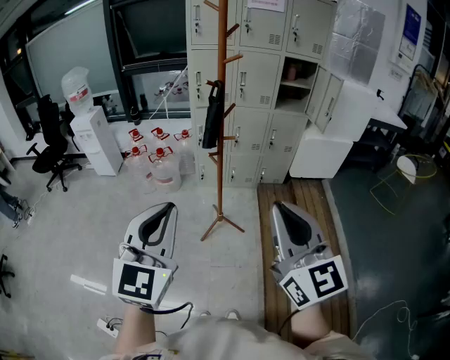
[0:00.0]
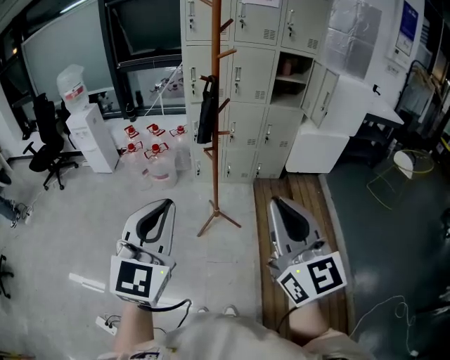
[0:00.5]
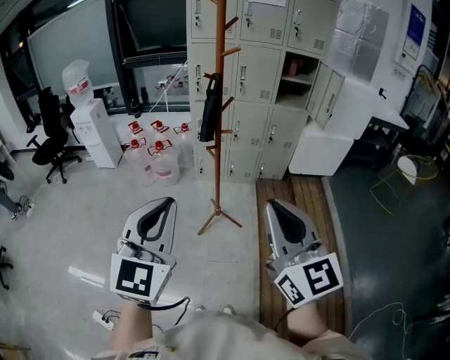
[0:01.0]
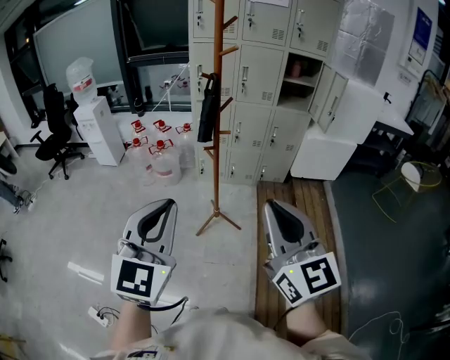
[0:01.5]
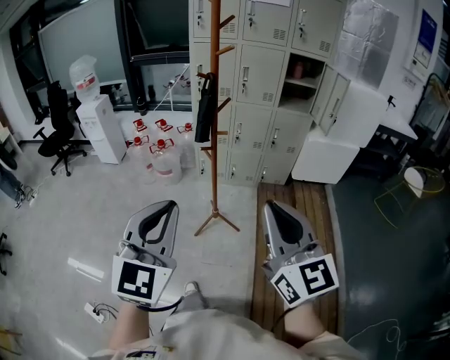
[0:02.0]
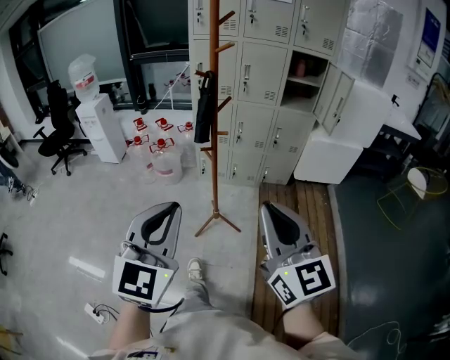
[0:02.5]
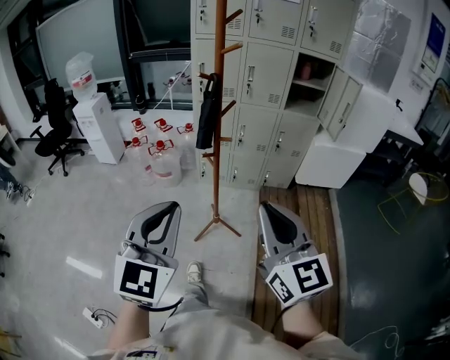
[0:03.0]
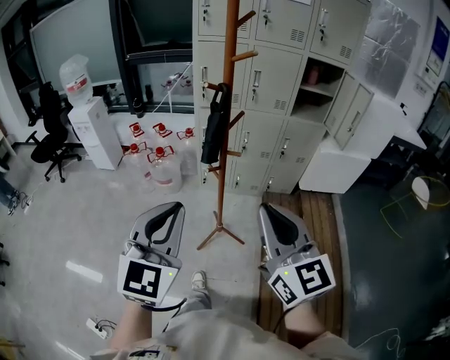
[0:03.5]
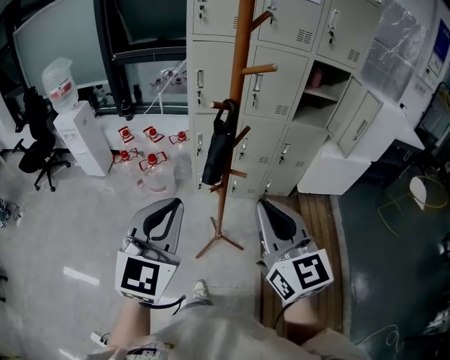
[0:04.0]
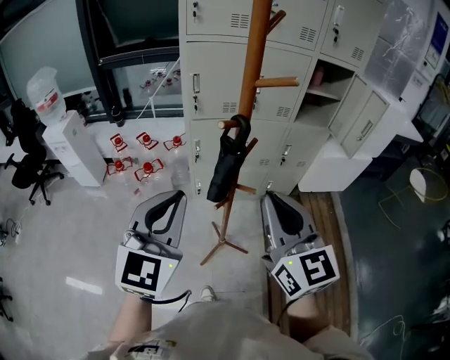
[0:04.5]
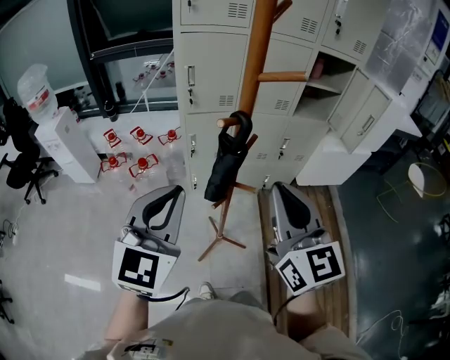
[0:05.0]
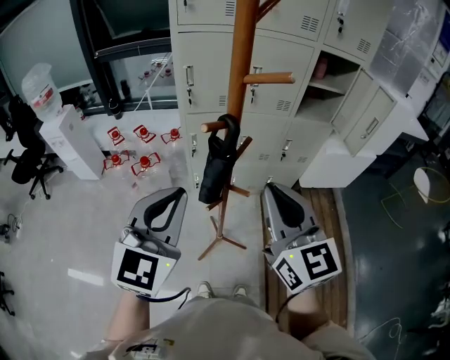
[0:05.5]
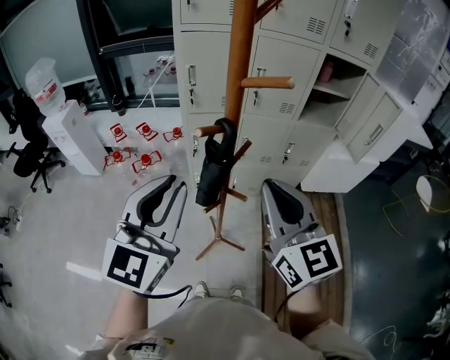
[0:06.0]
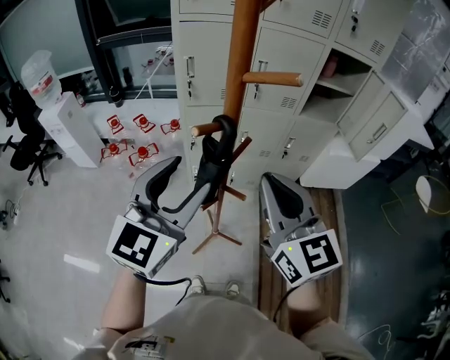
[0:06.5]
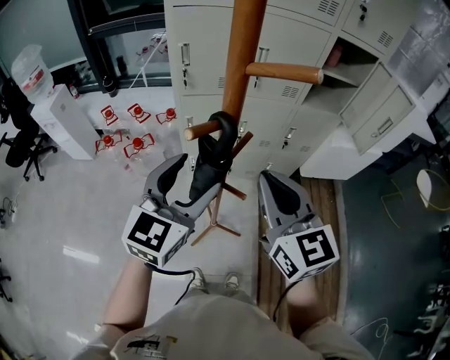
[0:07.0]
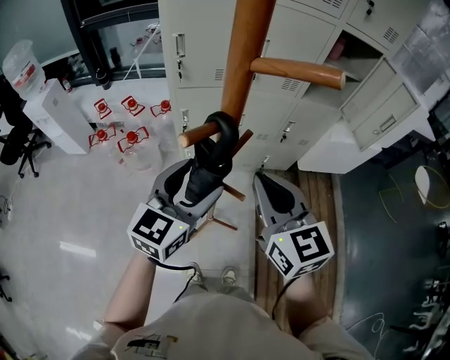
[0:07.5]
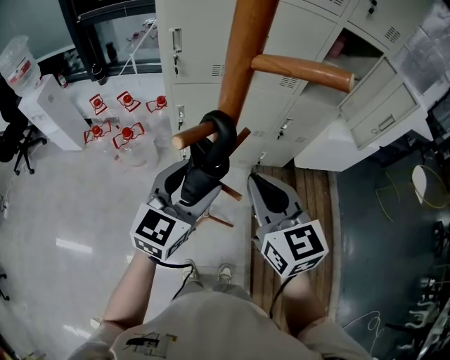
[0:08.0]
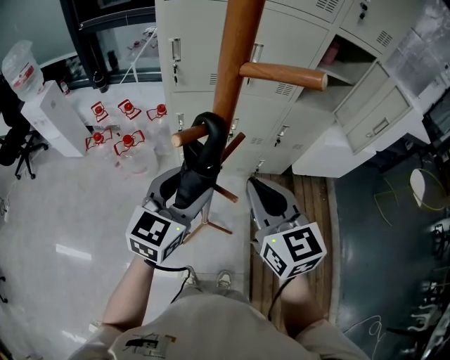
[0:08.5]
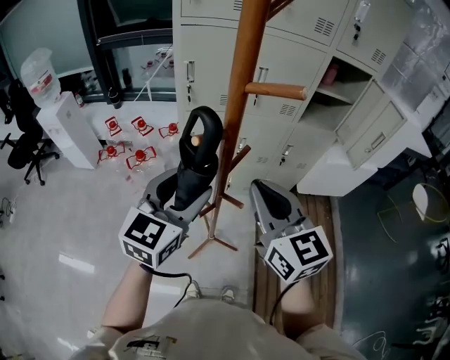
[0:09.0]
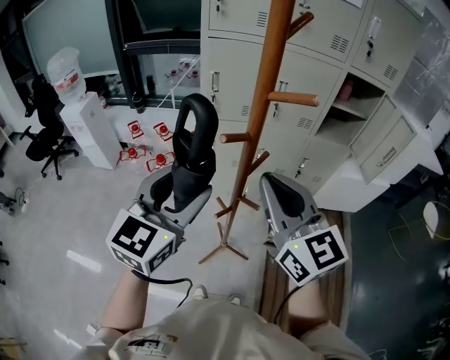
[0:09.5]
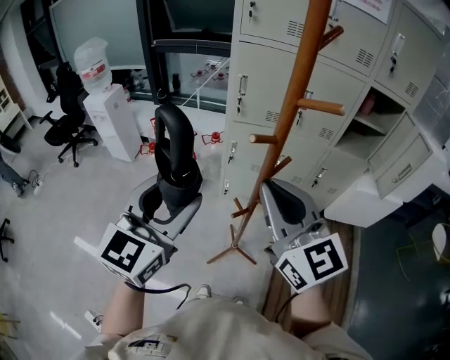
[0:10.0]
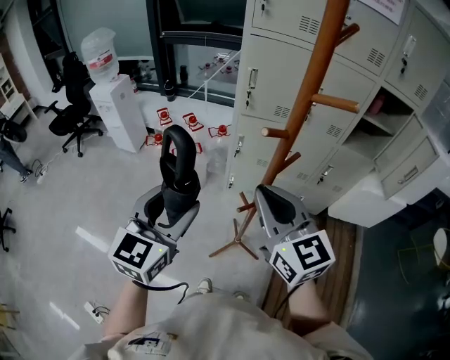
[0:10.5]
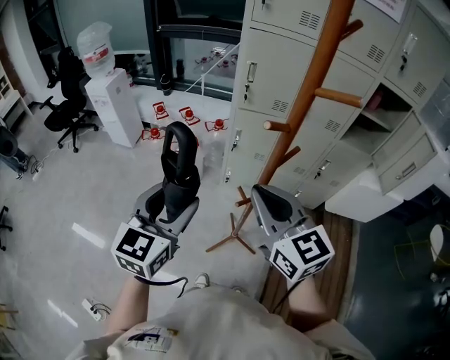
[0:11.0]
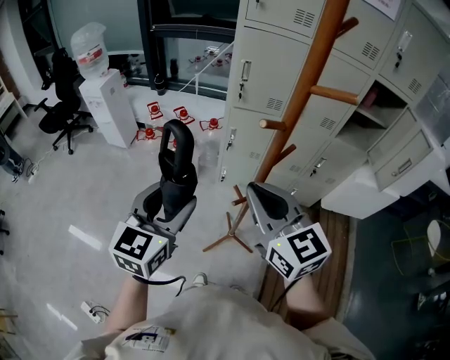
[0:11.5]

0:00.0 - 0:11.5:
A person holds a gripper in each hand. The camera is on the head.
0:00.0 - 0:02.0: The two grippers go roughly 10 cm to the right.
0:02.0 - 0:04.0: Both grippers travel together forward, some 30 cm.
0:04.0 - 0:06.0: The two grippers go approximately 15 cm forward.
0:06.0 - 0:07.5: Both grippers travel together downward and forward, about 15 cm. The left gripper swivels some 20 degrees, and opens its fingers.
0:07.5 - 0:09.5: The right gripper shifts about 15 cm upward and backward, while the left gripper shifts about 15 cm upward, backward and to the left.
0:09.5 - 0:11.5: The two grippers go approximately 10 cm to the left and downward.

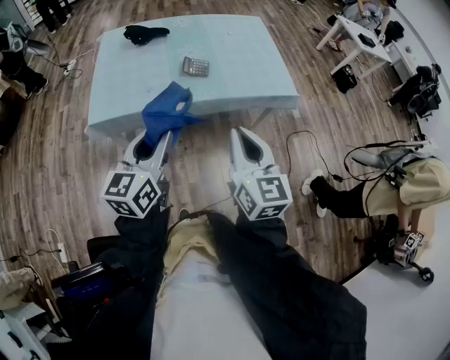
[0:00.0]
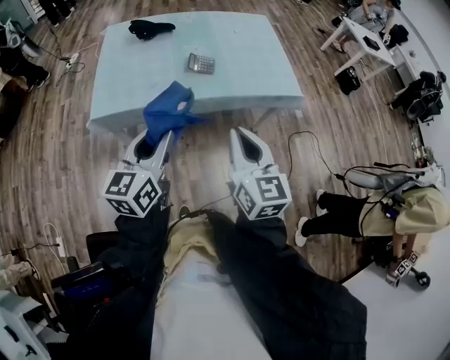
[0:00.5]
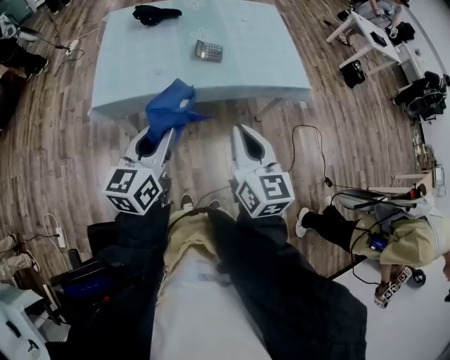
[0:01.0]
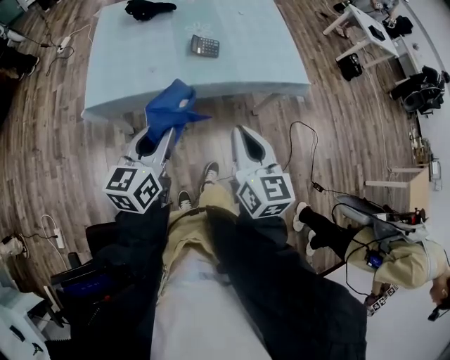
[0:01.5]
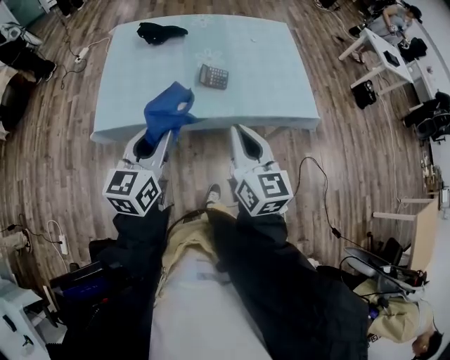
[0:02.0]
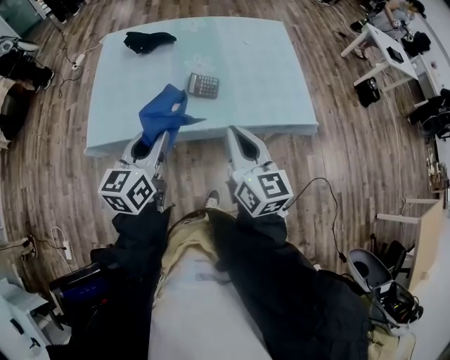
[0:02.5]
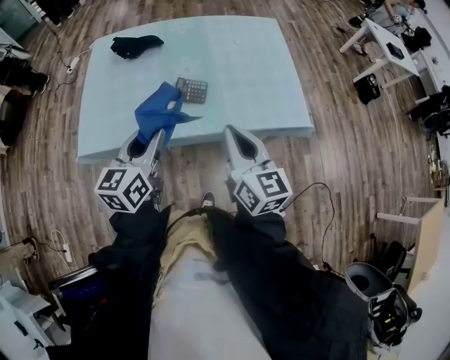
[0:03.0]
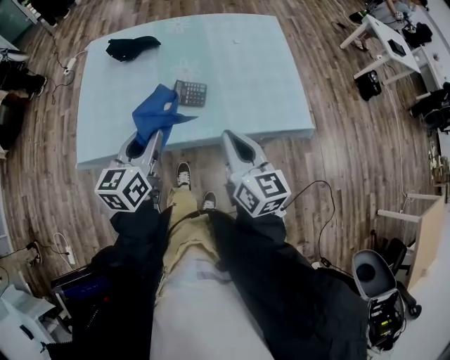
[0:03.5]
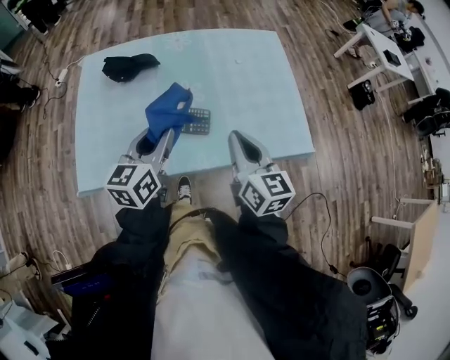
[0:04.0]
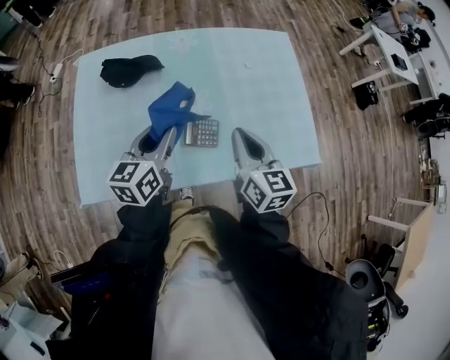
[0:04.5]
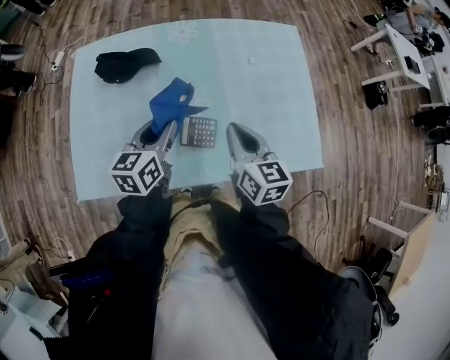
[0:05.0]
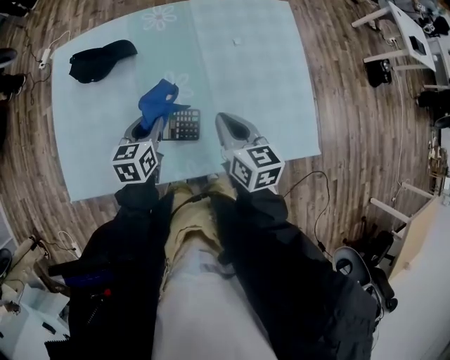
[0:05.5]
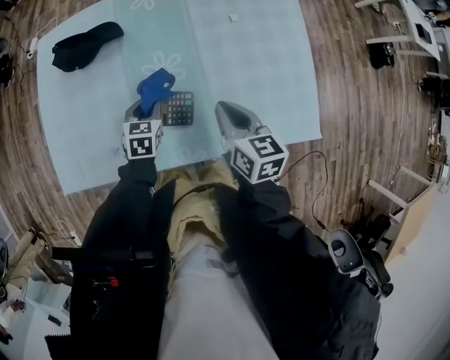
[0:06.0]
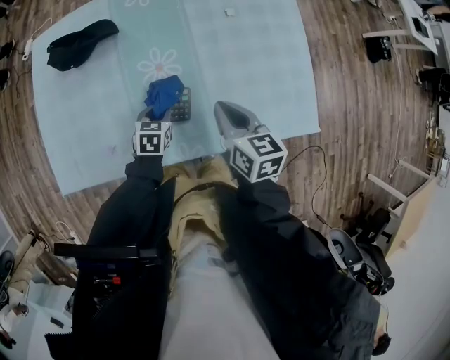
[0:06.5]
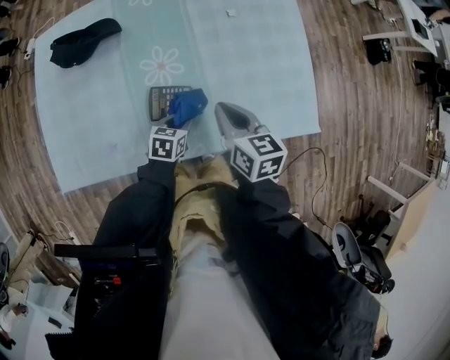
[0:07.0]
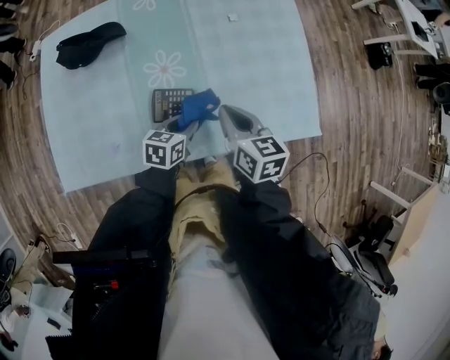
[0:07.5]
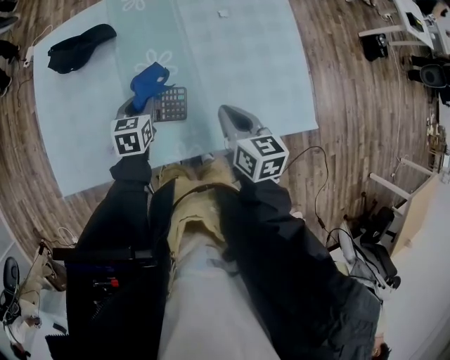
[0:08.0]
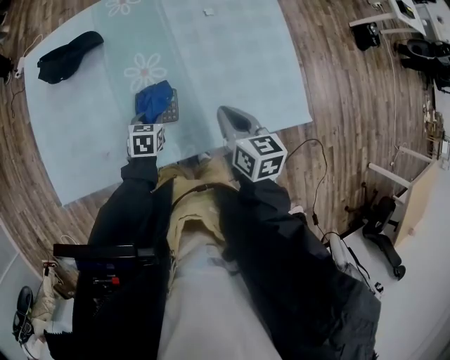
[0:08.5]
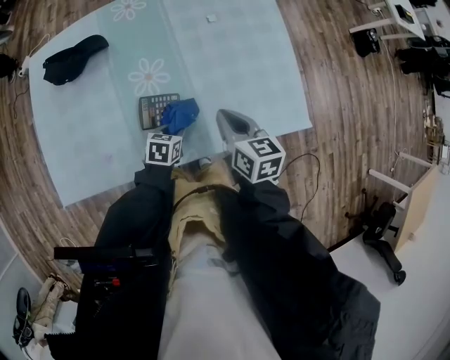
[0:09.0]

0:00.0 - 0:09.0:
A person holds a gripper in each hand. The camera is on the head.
0:00.0 - 0:02.0: The grippers both shift forward by about 15 cm.
0:02.0 - 0:04.5: Both grippers move forward, about 35 cm.
0:04.5 - 0:07.0: The right gripper heads downward and to the right, covering approximately 15 cm, and rotates roughly 20 degrees. The left gripper is displaced downward and to the right by approximately 35 cm, and points its fingers about 40 degrees further downward.
0:07.0 - 0:09.0: The left gripper moves roughly 10 cm to the left and comes back.

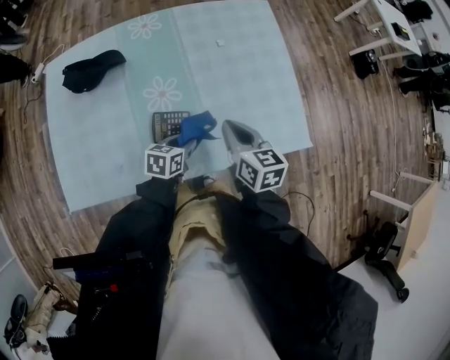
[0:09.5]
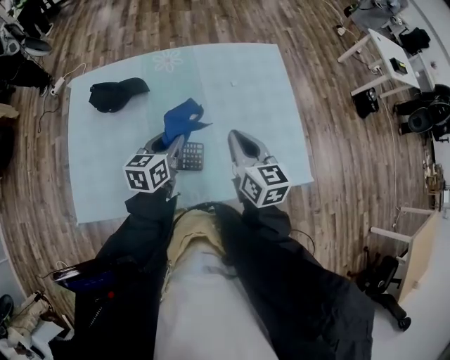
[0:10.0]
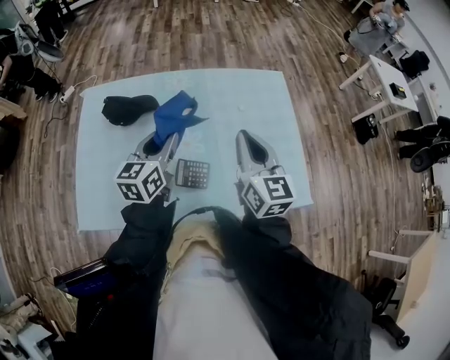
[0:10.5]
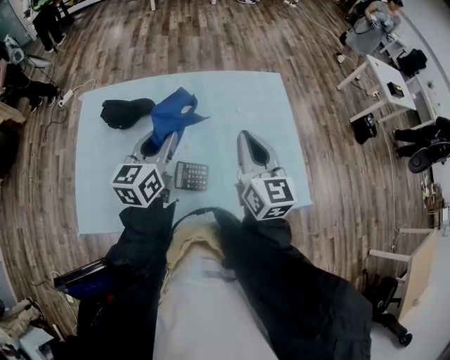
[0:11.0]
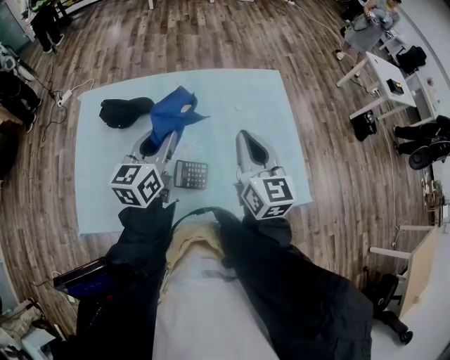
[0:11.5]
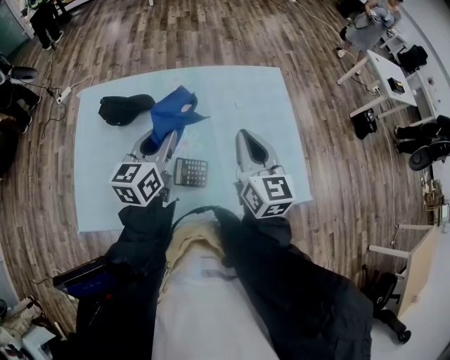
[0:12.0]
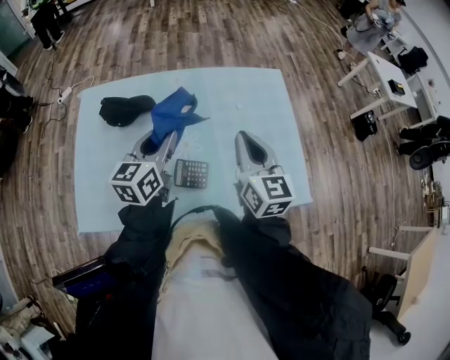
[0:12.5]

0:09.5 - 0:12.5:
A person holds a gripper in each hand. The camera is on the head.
0:09.5 - 0:11.0: The left gripper moves upward and to the left, about 30 cm, and tilts its fingers some 30 degrees upward, while the right gripper is displaced upward by about 20 cm, and changes its angle by approximately 30 degrees.
0:11.0 - 0:12.5: The grippers stay close to where they were, moving slightly.

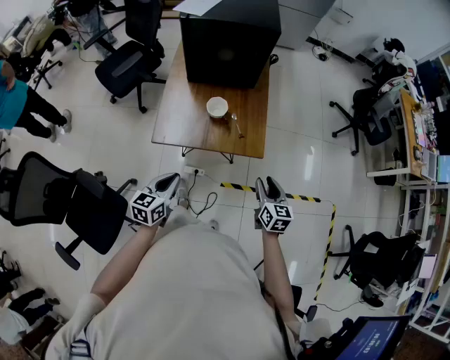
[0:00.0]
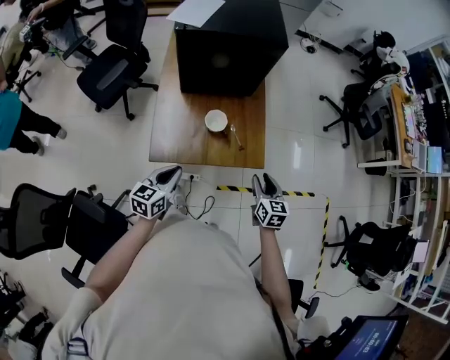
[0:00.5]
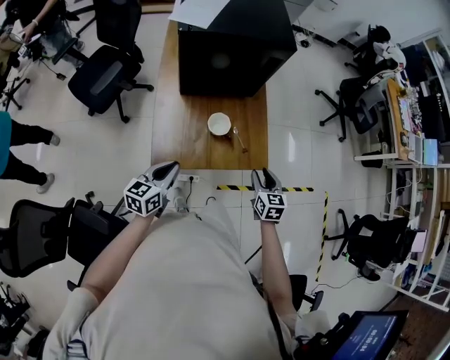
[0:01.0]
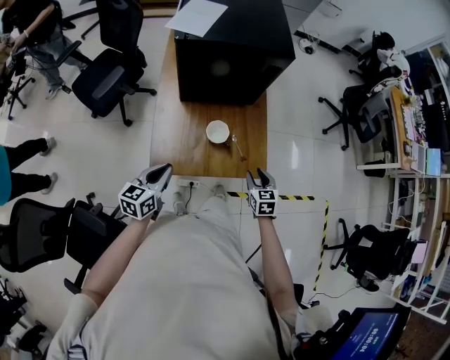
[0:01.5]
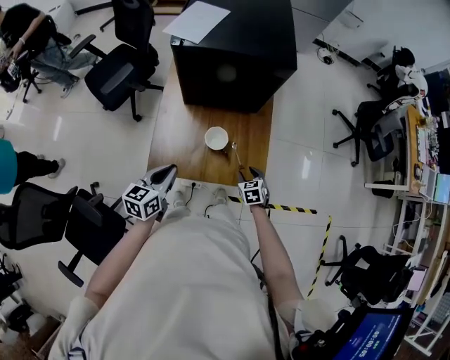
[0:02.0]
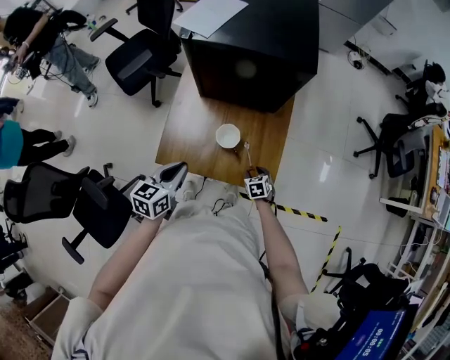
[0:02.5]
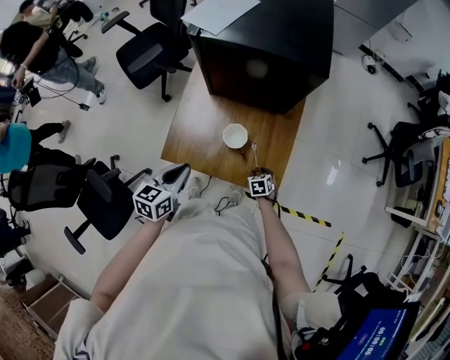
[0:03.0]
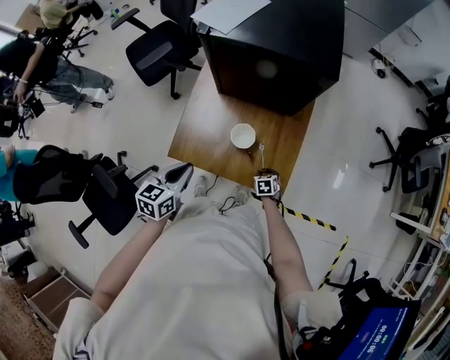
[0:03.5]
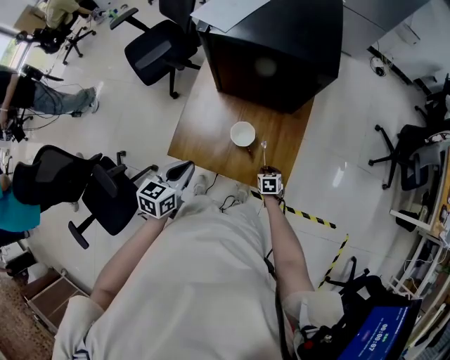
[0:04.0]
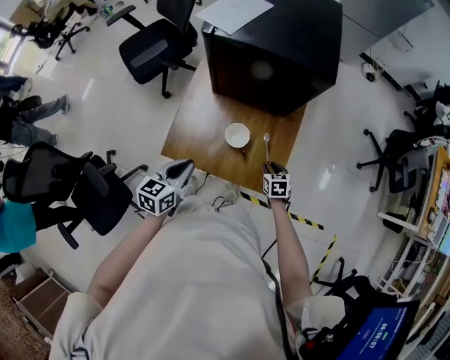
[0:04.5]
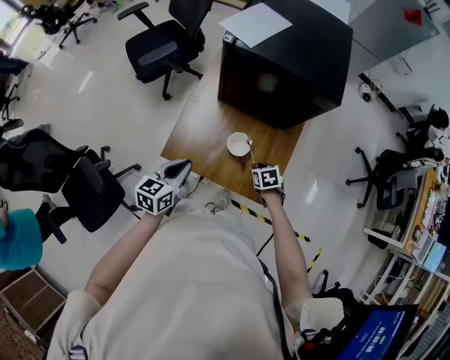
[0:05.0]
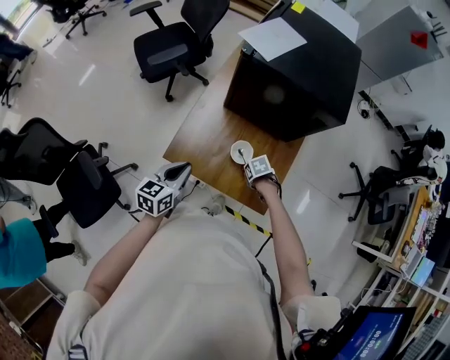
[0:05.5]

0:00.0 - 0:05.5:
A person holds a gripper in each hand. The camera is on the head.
0:00.0 - 0:02.0: The left gripper heads forward and to the left, covering roughly 20 cm; the right gripper heads forward, downward and to the left, covering approximately 30 cm, and changes its angle by approximately 40 degrees.
0:02.0 - 0:03.5: The right gripper heads downward, covering approximately 10 cm.
0:03.5 - 0:05.5: The right gripper goes approximately 10 cm upward, and rotates some 30 degrees.
